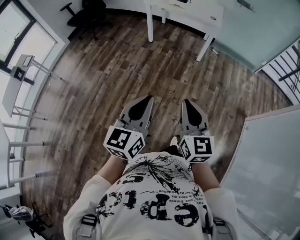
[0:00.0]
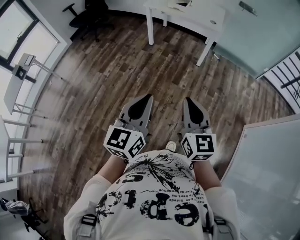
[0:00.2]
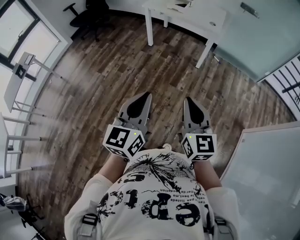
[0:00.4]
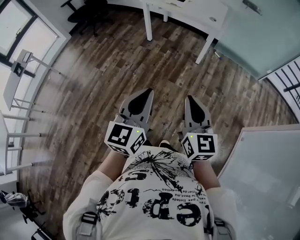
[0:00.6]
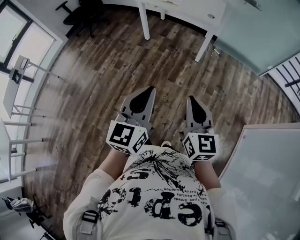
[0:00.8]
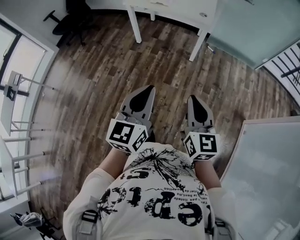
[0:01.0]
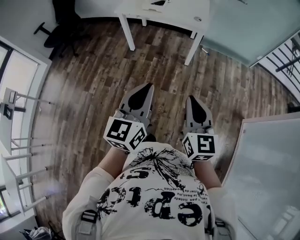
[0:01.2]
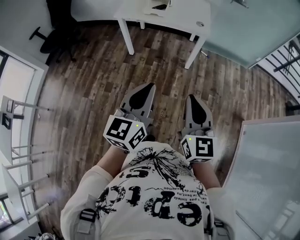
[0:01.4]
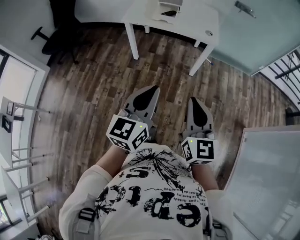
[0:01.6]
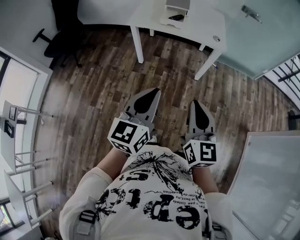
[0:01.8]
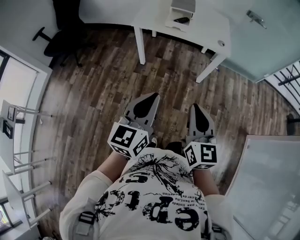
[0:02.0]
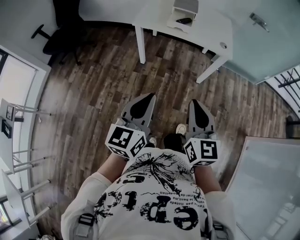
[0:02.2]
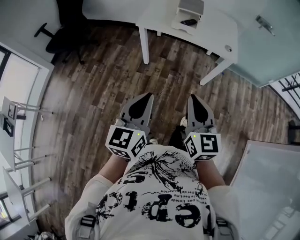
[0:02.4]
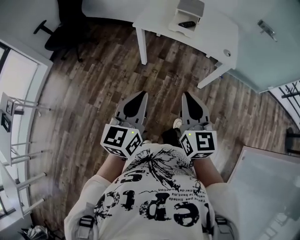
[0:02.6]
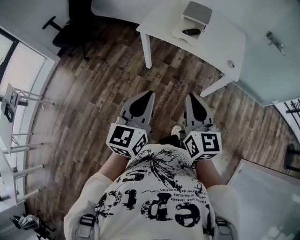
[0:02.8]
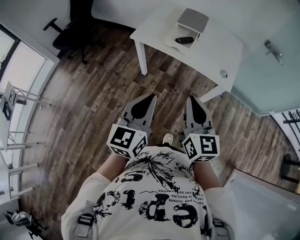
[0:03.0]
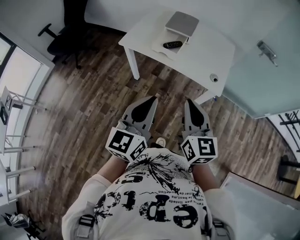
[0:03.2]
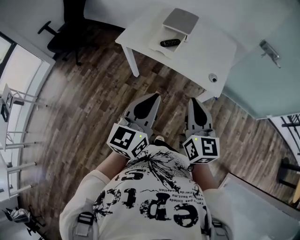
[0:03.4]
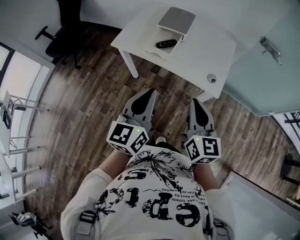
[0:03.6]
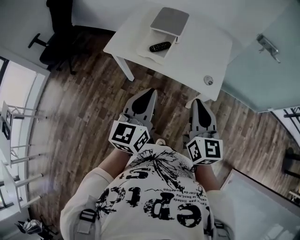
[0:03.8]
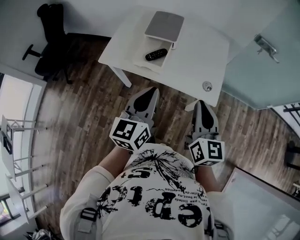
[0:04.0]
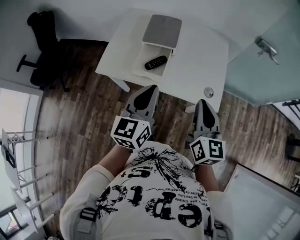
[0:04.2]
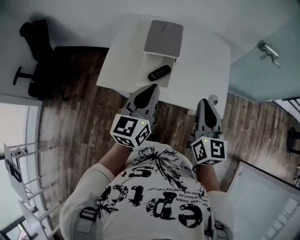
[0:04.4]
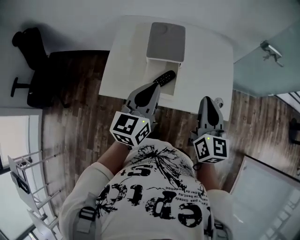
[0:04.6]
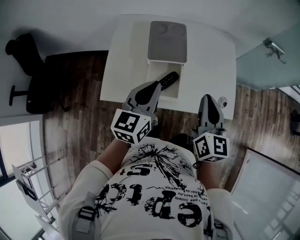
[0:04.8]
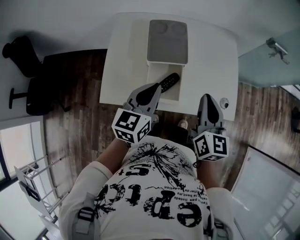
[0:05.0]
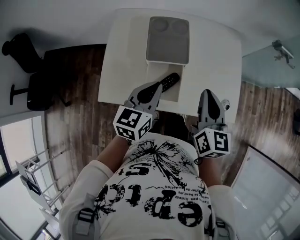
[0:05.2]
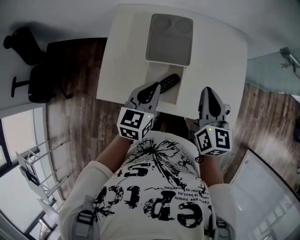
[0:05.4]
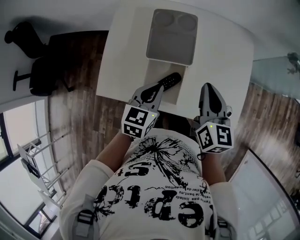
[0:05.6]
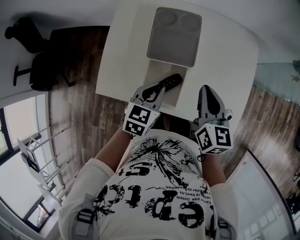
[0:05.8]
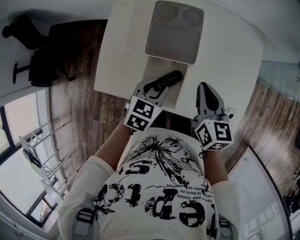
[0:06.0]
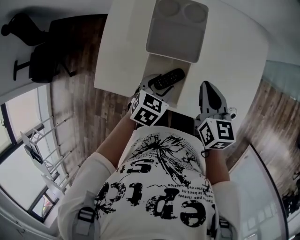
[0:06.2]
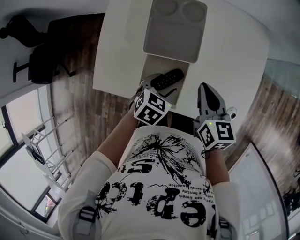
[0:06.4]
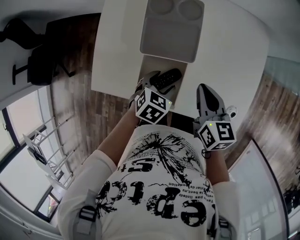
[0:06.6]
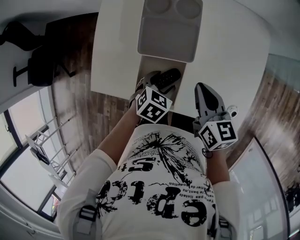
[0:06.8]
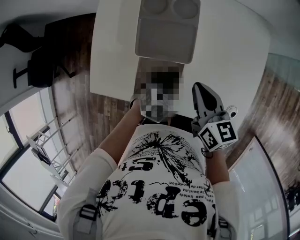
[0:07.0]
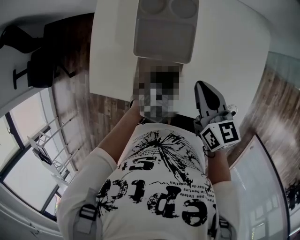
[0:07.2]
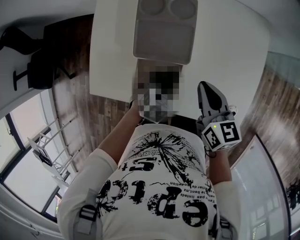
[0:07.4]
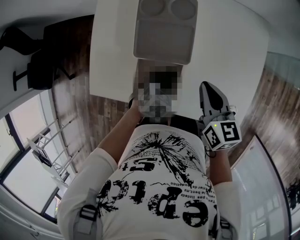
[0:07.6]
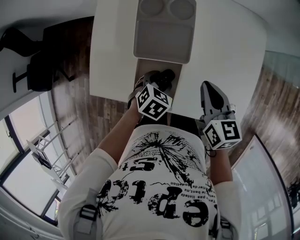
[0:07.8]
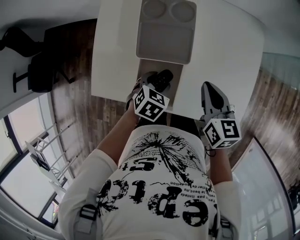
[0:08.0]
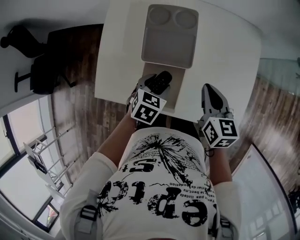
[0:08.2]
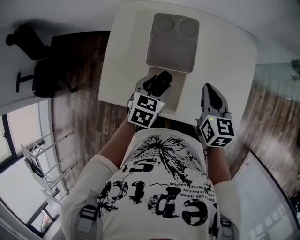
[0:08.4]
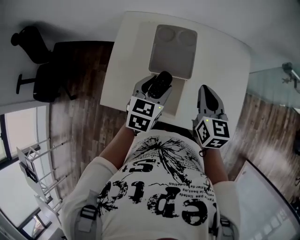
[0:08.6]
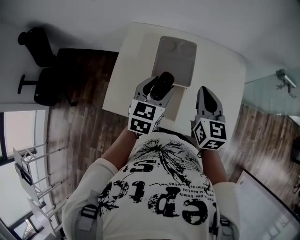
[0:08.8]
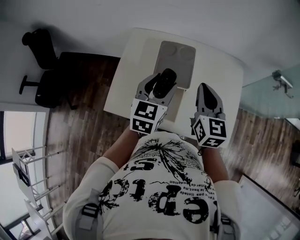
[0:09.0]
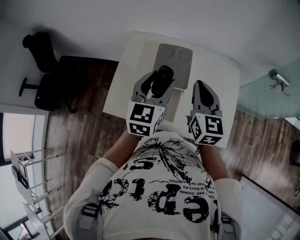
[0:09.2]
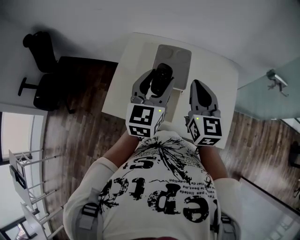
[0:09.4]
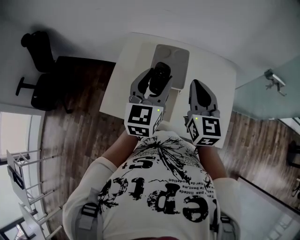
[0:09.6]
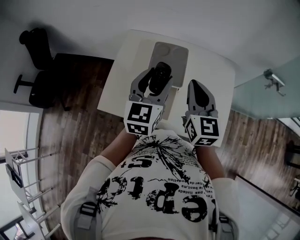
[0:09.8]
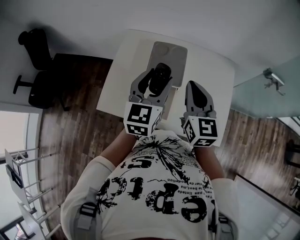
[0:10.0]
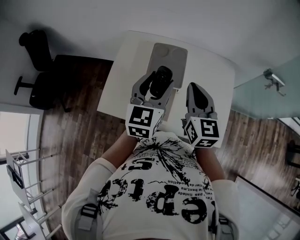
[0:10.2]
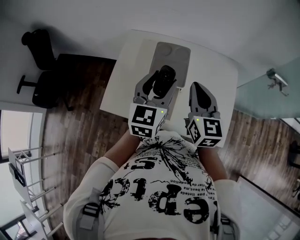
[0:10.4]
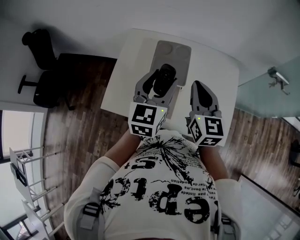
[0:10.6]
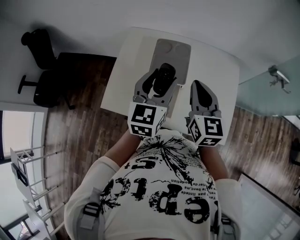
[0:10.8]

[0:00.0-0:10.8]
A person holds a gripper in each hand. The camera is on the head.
0:00.0 to 0:01.6: Both grippers move forward, some 40 cm.
0:01.6 to 0:03.0: Both grippers travel together forward, some 25 cm.
0:03.0 to 0:04.6: The two grippers go some 40 cm forward. The left gripper turns by about 20 degrees; the right gripper turns by roughly 30 degrees.
0:04.6 to 0:06.2: The right gripper shifts approximately 20 cm forward and downward, and swivels about 30 degrees, while the left gripper moves downward and forward, roughly 25 cm, tilts its fingers roughly 40 degrees downward, and opens.
0:06.2 to 0:07.8: The left gripper moves downward, some 5 cm.
0:07.8 to 0:09.2: The right gripper moves upward, some 20 cm, and swivels about 30 degrees; the left gripper moves upward, about 30 cm, and tilts its fingers roughly 50 degrees upward.
0:09.2 to 0:10.8: The grippers make only small movements.

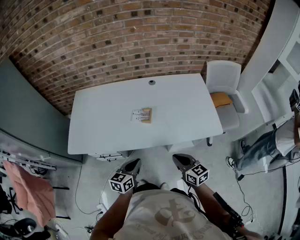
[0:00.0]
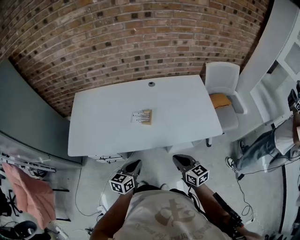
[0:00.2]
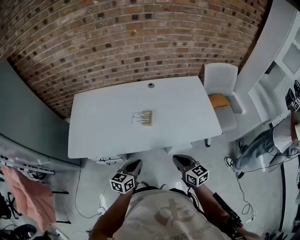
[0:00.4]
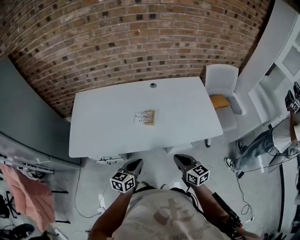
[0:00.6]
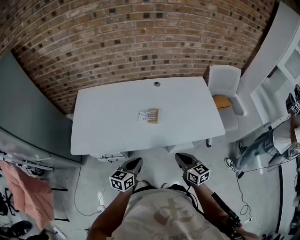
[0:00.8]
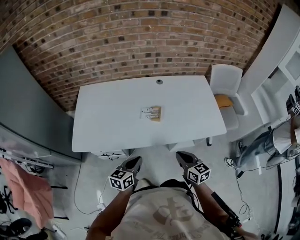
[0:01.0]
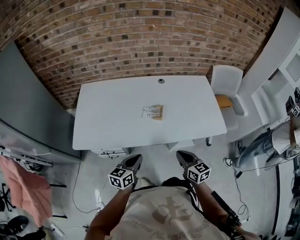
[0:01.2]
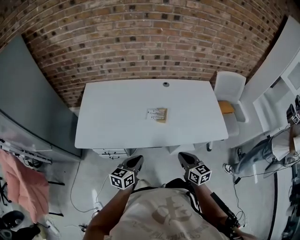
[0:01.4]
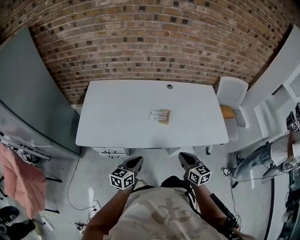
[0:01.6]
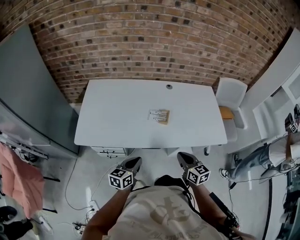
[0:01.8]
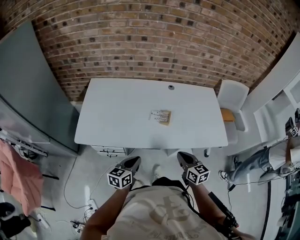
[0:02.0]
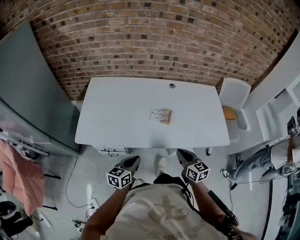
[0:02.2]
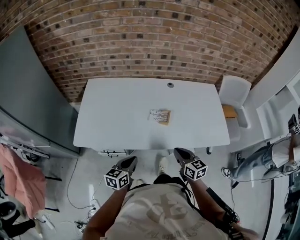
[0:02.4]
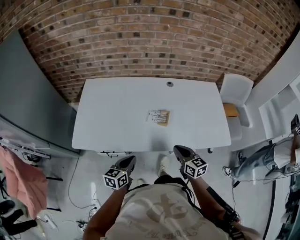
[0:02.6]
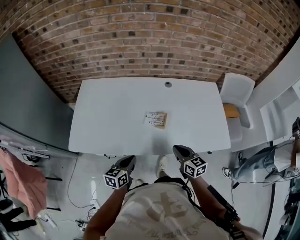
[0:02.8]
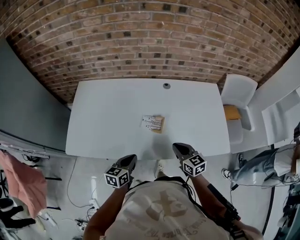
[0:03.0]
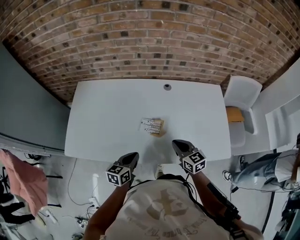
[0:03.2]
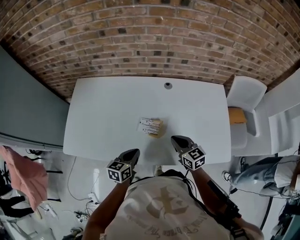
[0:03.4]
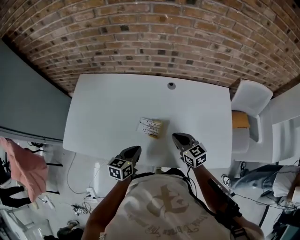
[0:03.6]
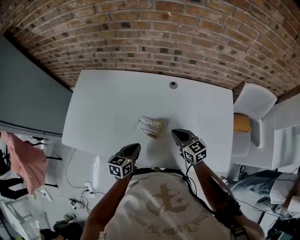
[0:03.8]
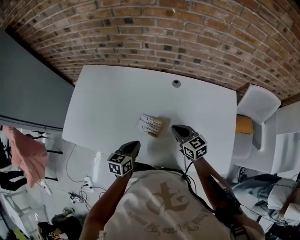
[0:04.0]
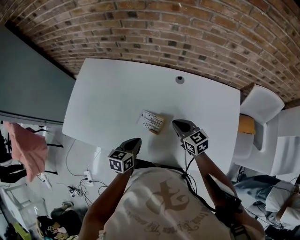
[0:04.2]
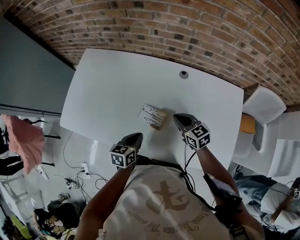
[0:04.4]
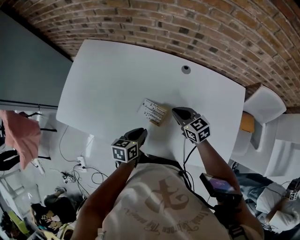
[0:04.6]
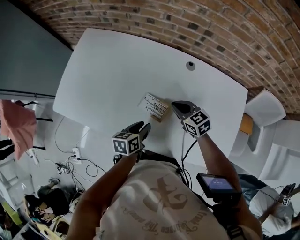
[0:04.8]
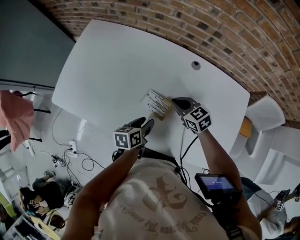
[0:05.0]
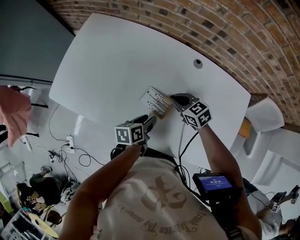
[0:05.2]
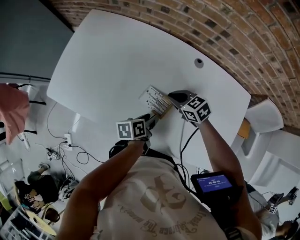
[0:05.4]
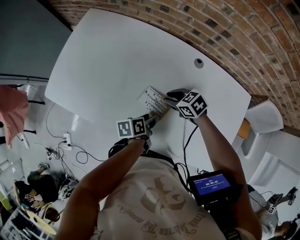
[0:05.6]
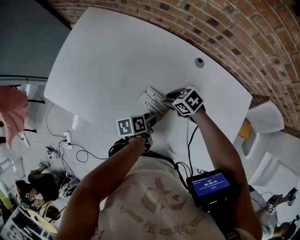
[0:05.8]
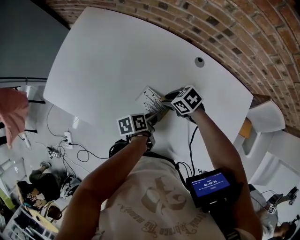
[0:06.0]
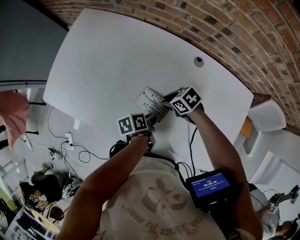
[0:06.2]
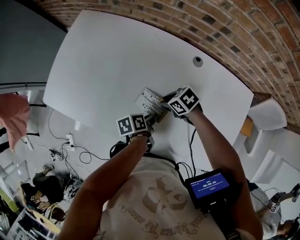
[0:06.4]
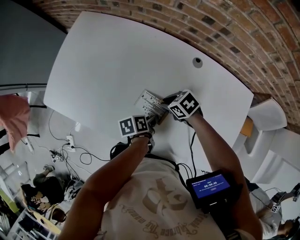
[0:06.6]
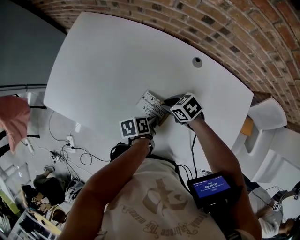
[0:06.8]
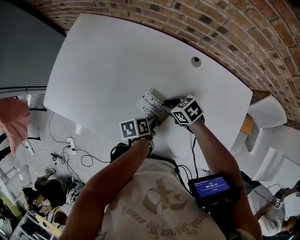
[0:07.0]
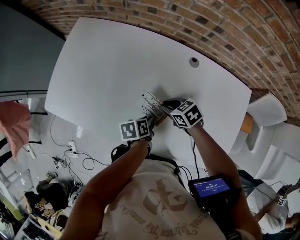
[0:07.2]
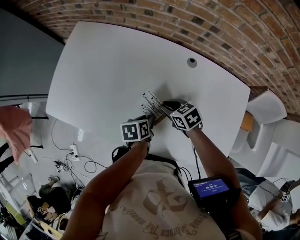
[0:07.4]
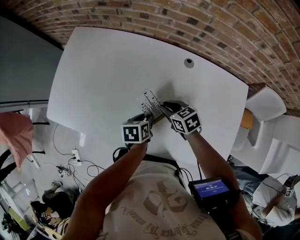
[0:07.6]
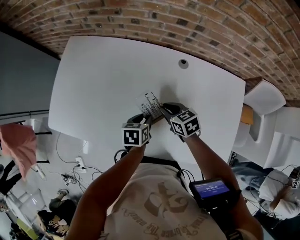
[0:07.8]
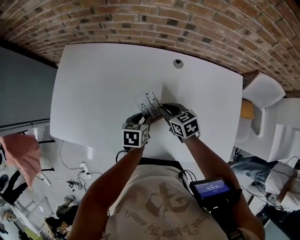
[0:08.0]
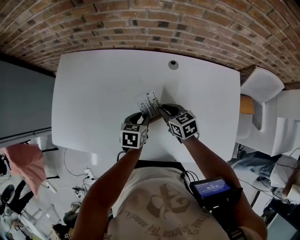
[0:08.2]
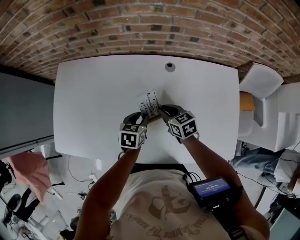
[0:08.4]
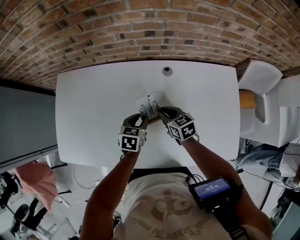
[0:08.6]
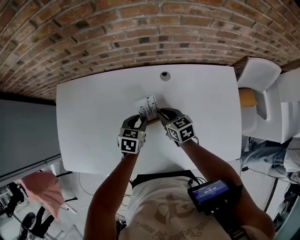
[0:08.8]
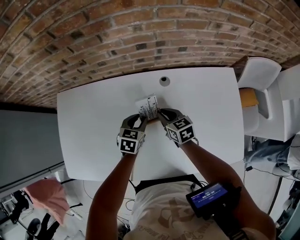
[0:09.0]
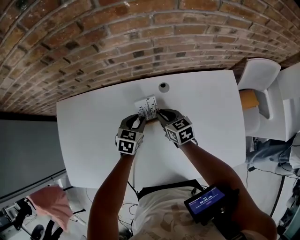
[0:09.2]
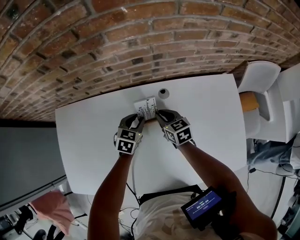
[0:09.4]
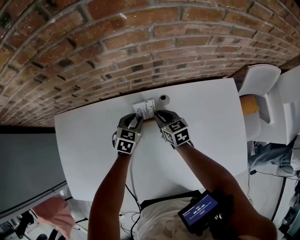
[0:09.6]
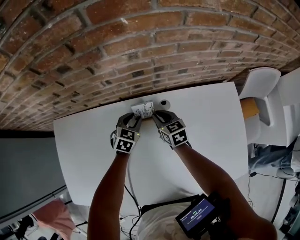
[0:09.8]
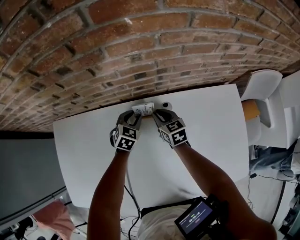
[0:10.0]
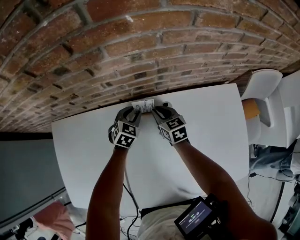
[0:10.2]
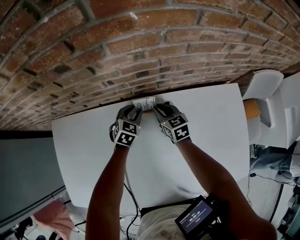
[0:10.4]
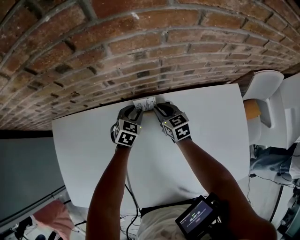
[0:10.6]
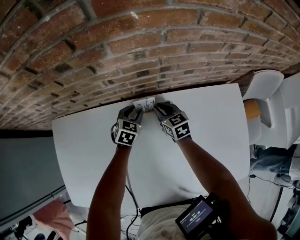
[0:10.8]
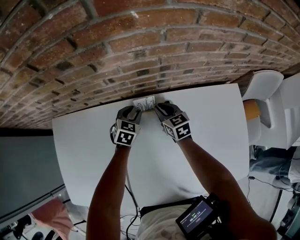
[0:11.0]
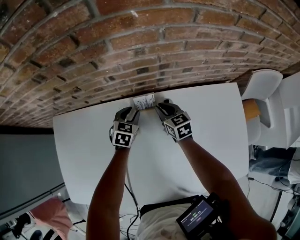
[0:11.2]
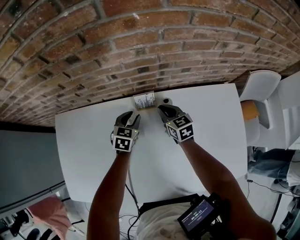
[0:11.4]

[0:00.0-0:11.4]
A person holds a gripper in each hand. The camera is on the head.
0:00.0 to 0:01.4: Both grippers travel together to the left, some 10 cm.
0:01.4 to 0:02.8: The right gripper travels forward by some 10 cm. The left gripper is displaced forward by roughly 5 cm.
0:02.8 to 0:04.2: The right gripper goes some 20 cm forward, and rotates some 20 degrees, while the left gripper moves forward and to the right, roughly 20 cm.
0:04.2 to 0:05.6: The two grippers go about 10 cm downward. The left gripper rolls counterclockwise, seen from behind, by roughly 40 degrees, and opens its fingers; the right gripper changes its angle by approximately 40 degrees, and opens up.
0:05.6 to 0:07.2: The left gripper closes up.
0:07.2 to 0:08.6: The right gripper changes place by about 5 cm, and changes its angle by about 40 degrees; the left gripper ends up about 10 cm from where it was, and rolls clockwise, seen from behind, by about 60 degrees.
0:08.6 to 0:10.0: The grippers both shift forward by some 20 cm. The left gripper swivels some 30 degrees.
0:10.0 to 0:11.4: The grippers make only small movements.

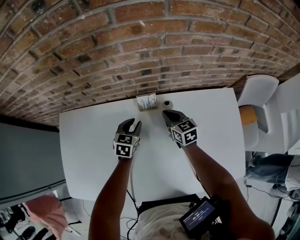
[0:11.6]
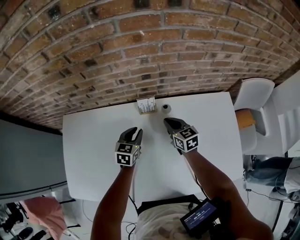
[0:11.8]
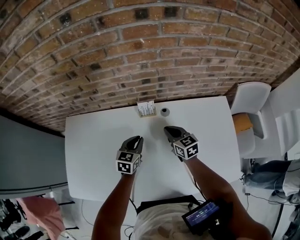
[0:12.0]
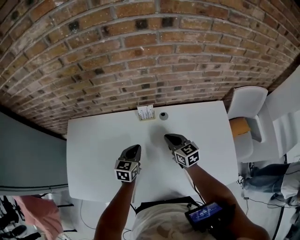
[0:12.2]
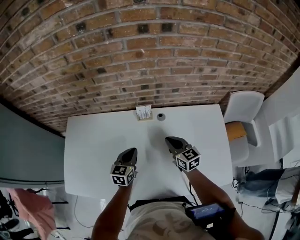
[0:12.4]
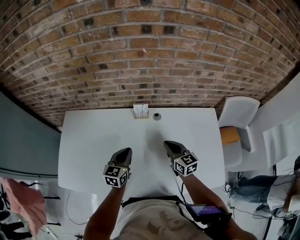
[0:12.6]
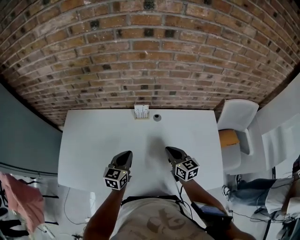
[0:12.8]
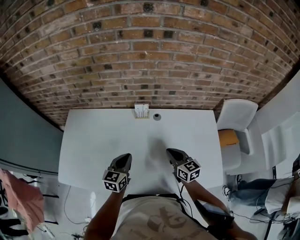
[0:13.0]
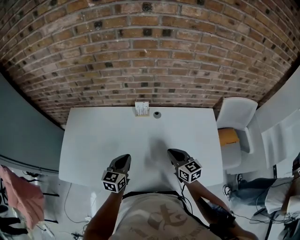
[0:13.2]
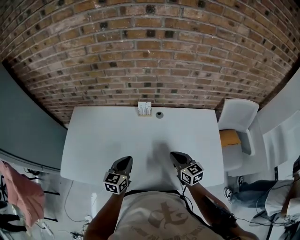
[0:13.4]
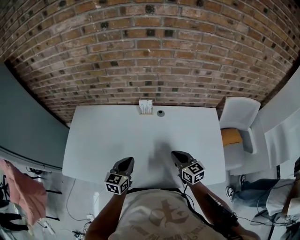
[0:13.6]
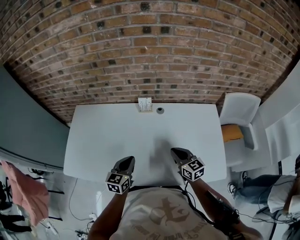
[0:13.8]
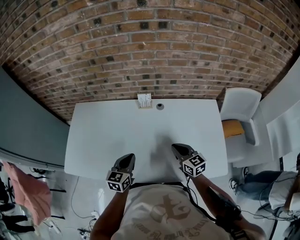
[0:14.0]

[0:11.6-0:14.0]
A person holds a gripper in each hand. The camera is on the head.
0:11.6 to 0:12.8: The grippers both shift backward and upward by roughly 25 cm. The left gripper closes.
0:12.8 to 0:14.0: The two grippers go some 10 cm backward.
